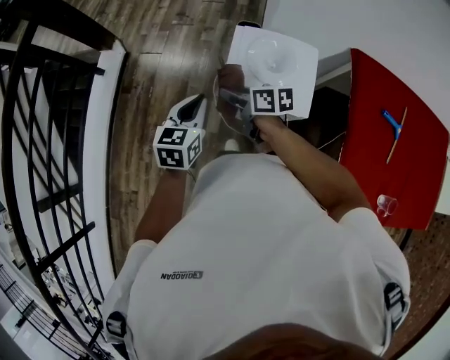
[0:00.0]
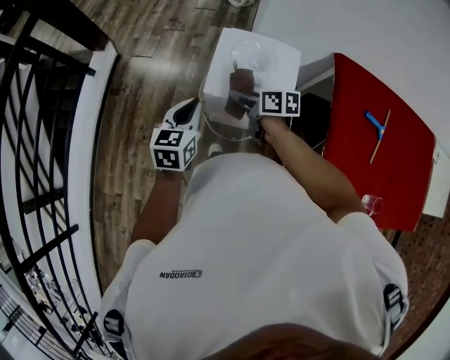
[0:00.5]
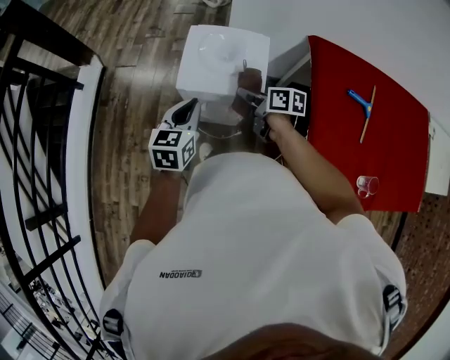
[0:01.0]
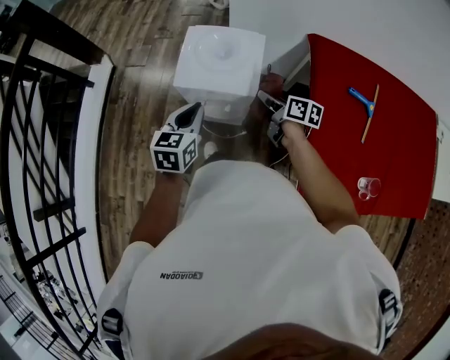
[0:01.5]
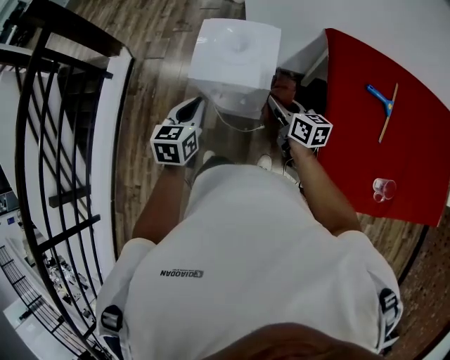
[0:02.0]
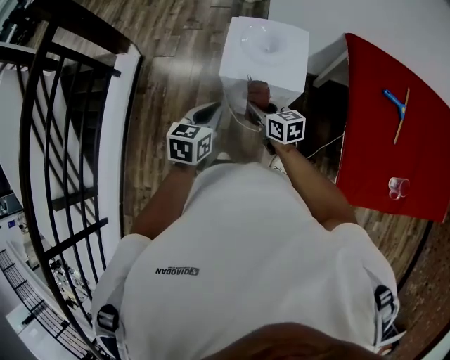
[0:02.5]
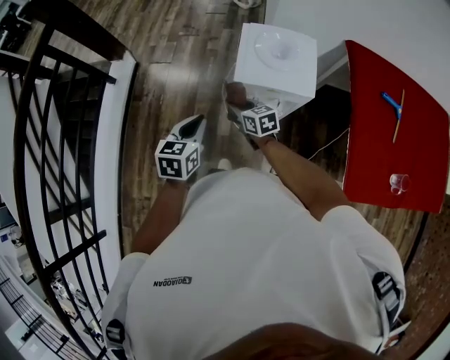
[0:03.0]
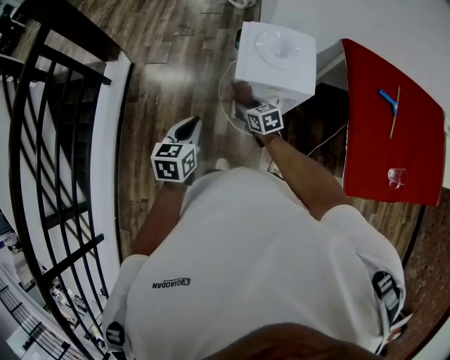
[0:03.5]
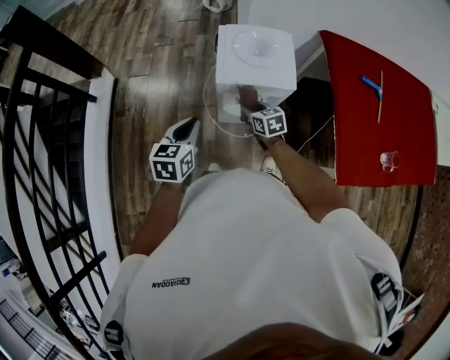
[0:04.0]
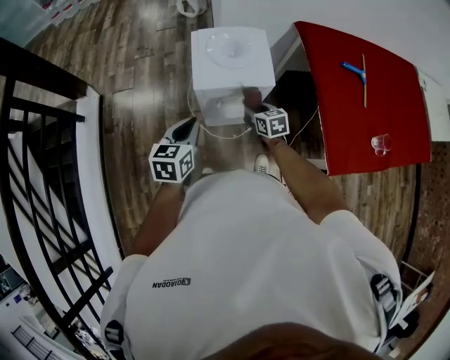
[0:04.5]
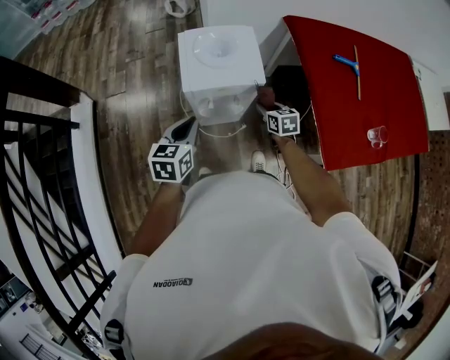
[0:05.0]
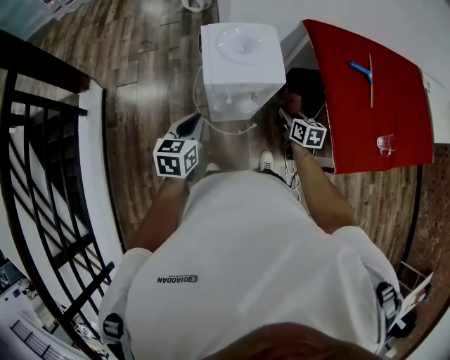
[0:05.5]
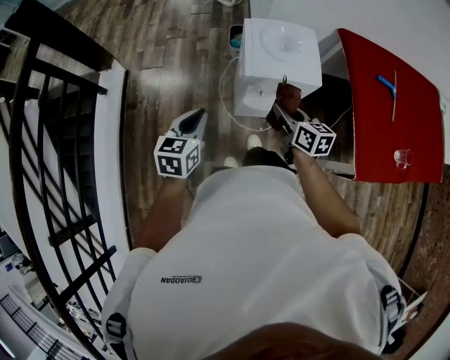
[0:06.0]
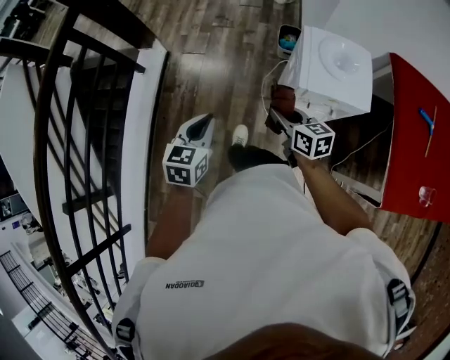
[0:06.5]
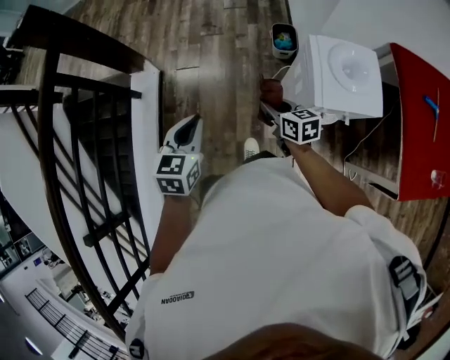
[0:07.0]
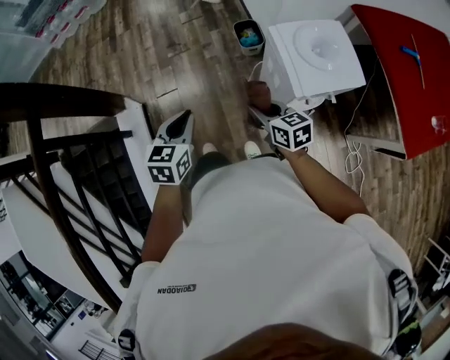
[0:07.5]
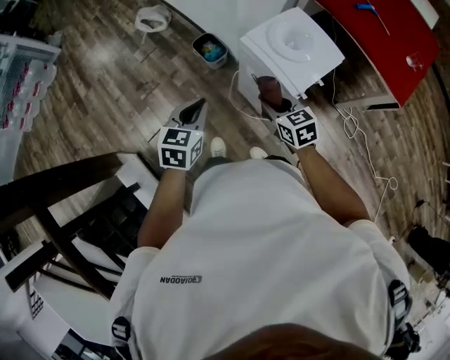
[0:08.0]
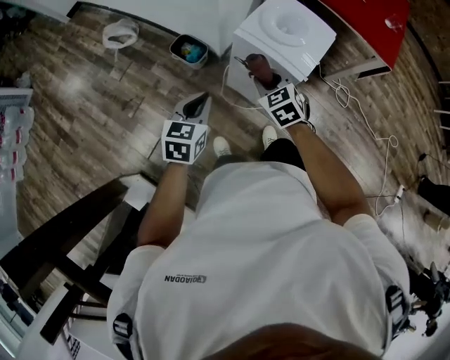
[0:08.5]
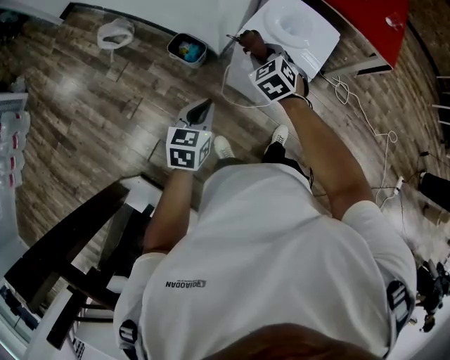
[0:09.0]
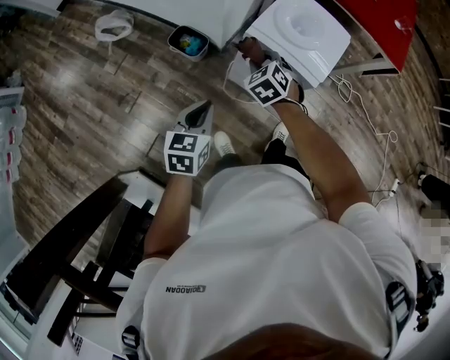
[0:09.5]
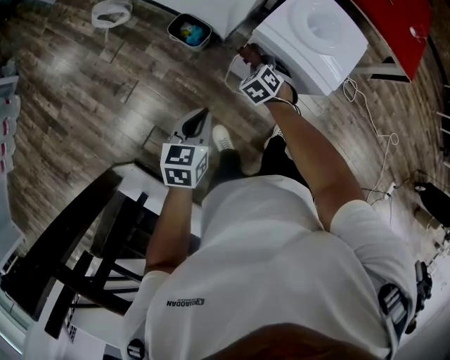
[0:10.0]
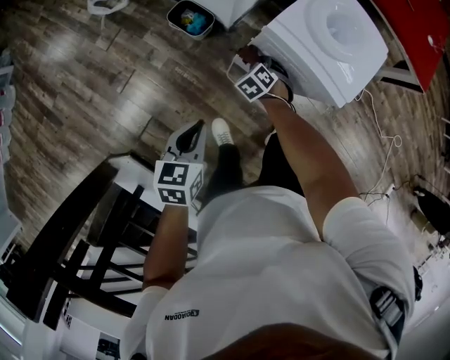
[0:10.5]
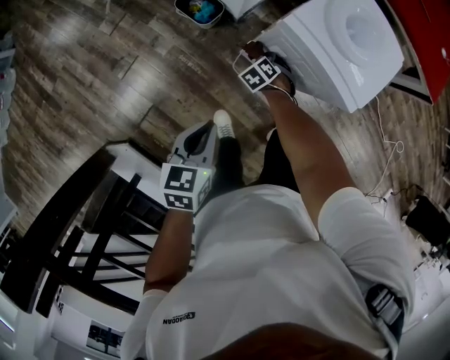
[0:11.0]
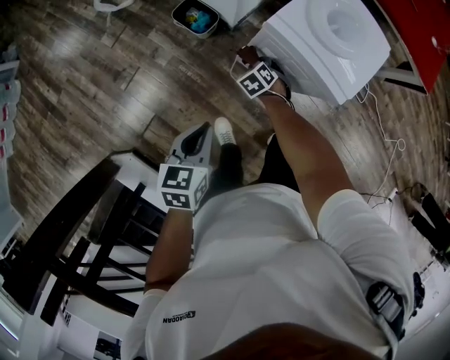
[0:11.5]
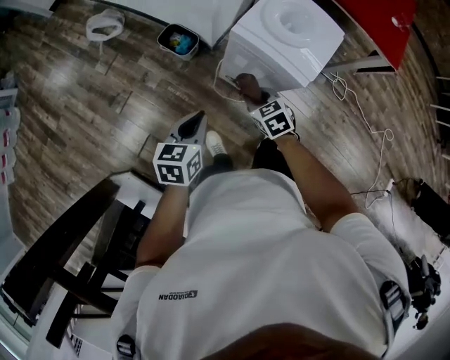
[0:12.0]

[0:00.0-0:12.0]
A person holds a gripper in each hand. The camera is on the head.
0:00.0 to 0:02.0: The right gripper heads to the right and backward, covering about 30 cm, and changes its angle by approximately 30 degrees, while the left gripper goes about 15 cm backward and to the right.
0:02.0 to 0:04.0: The right gripper travels to the left and downward by some 20 cm, and rotates approximately 30 degrees, while the left gripper moves to the left, roughly 15 cm.
0:04.0 to 0:06.0: The left gripper shifts some 5 cm to the left. The right gripper travels upward by roughly 10 cm, travels to the right and back again, about 20 cm each way, and swivels some 20 degrees.
0:06.0 to 0:08.0: The right gripper shifts by some 25 cm, and swivels roughly 30 degrees; the left gripper moves roughly 30 cm, and changes its angle by approximately 40 degrees.
0:08.0 to 0:10.0: The left gripper moves downward, about 10 cm. The right gripper heads downward, covering approximately 15 cm, and rotates roughly 40 degrees.
0:10.0 to 0:12.0: The right gripper moves backward, some 10 cm, goes downward and returns, roughly 15 cm each way, and turns by some 30 degrees.

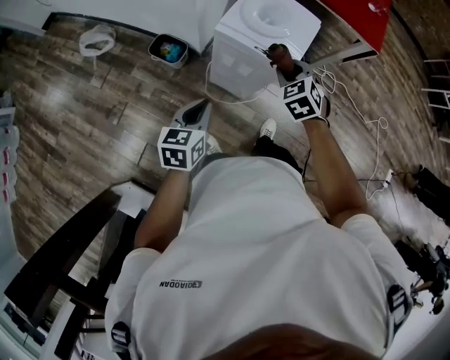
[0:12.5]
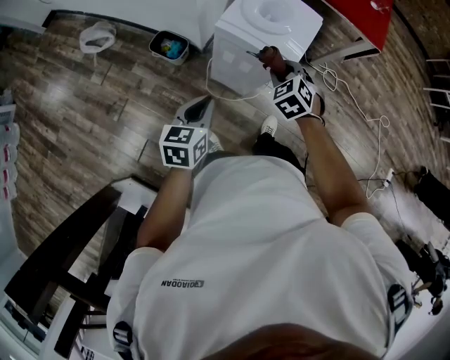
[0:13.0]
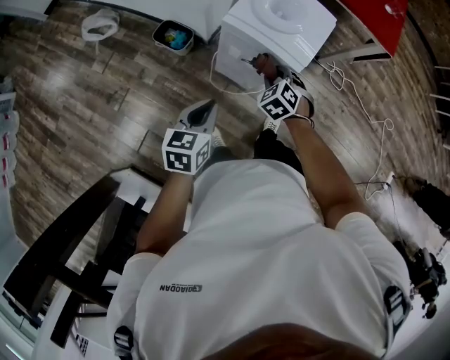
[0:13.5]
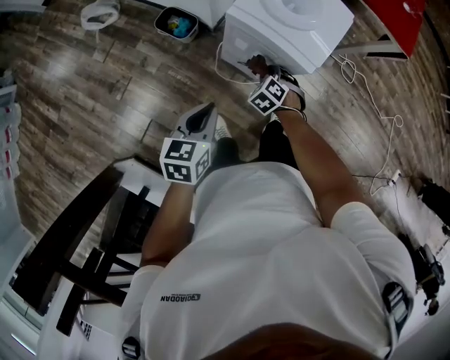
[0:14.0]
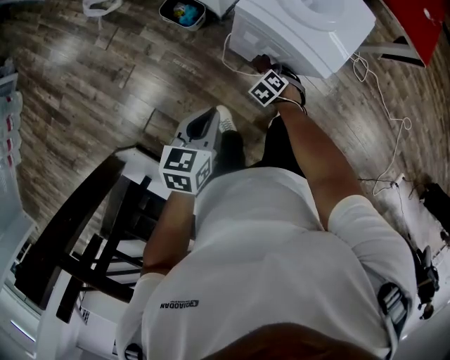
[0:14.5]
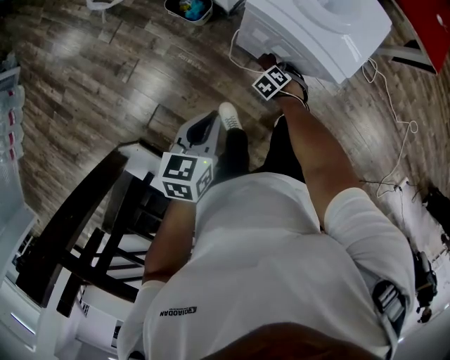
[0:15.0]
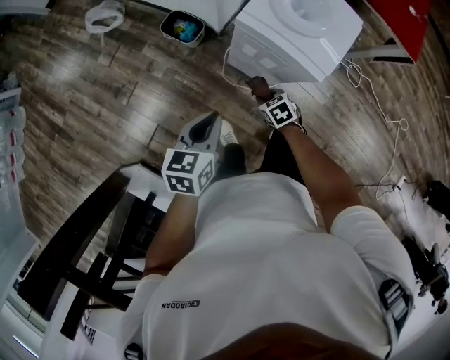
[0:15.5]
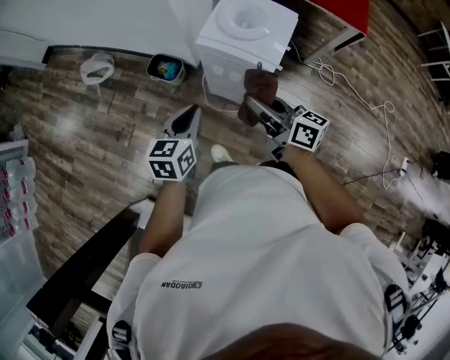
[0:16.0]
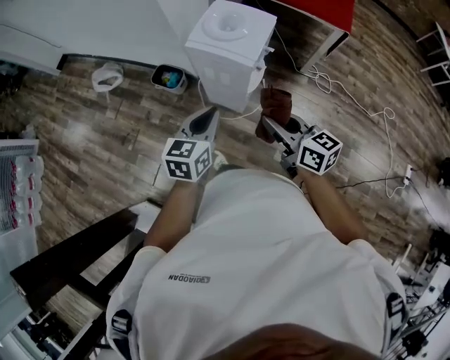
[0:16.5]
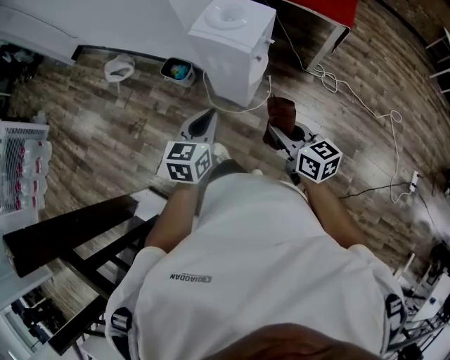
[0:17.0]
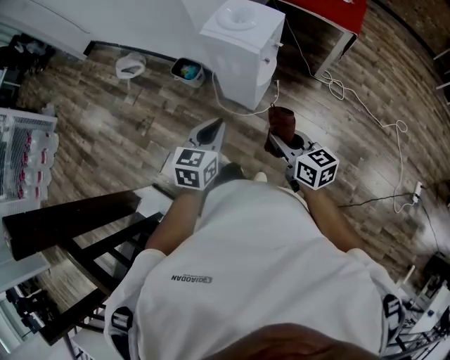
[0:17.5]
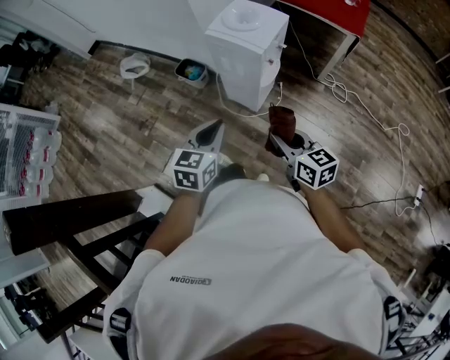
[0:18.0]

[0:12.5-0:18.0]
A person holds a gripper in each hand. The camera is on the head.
0:12.5 to 0:14.5: The right gripper goes some 30 cm downward, and swivels roughly 30 degrees. The left gripper travels downward by some 5 cm.
0:14.5 to 0:16.0: The right gripper is displaced upward by some 40 cm, and angles its fingers upward, by roughly 70 degrees. The left gripper travels upward by roughly 10 cm.
0:16.0 to 0:18.0: The left gripper heads backward and to the right, covering roughly 25 cm. The right gripper is displaced backward by roughly 25 cm, and swivels approximately 30 degrees.

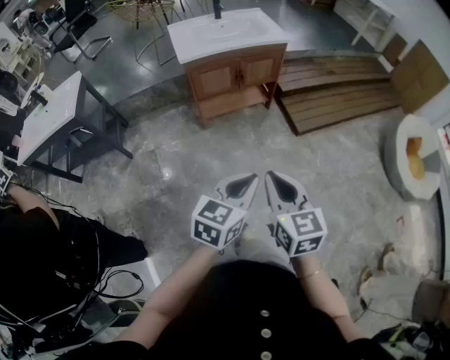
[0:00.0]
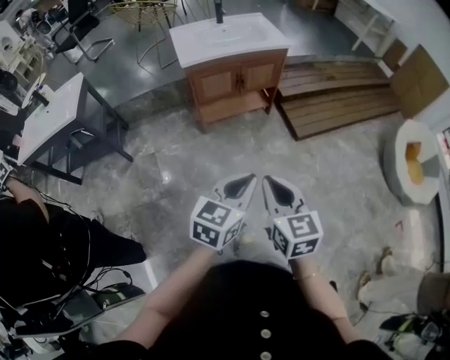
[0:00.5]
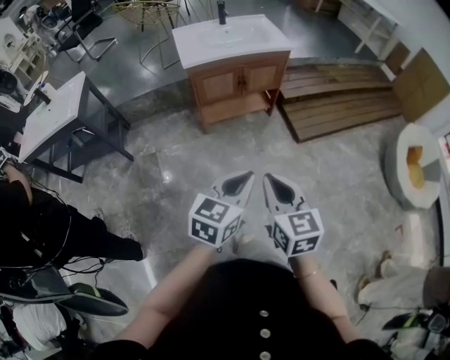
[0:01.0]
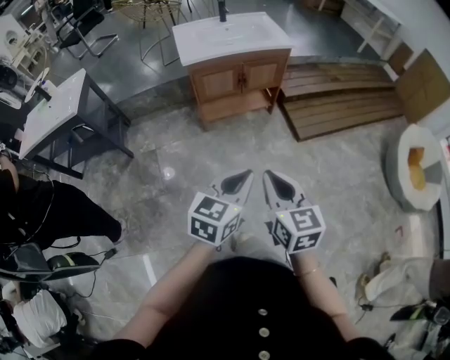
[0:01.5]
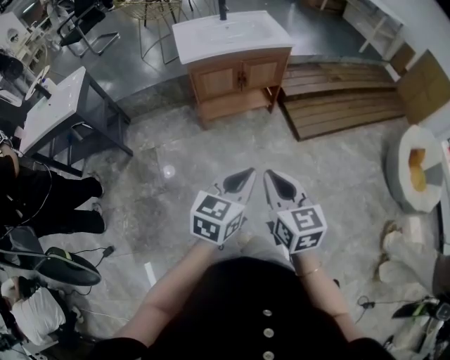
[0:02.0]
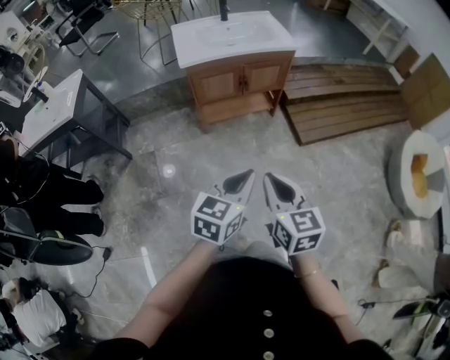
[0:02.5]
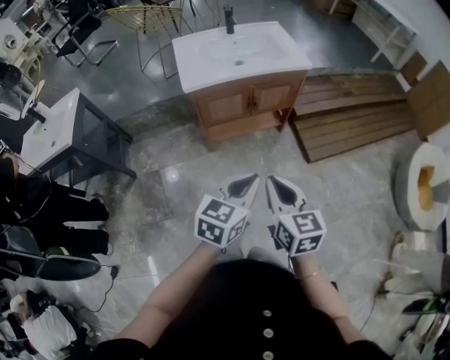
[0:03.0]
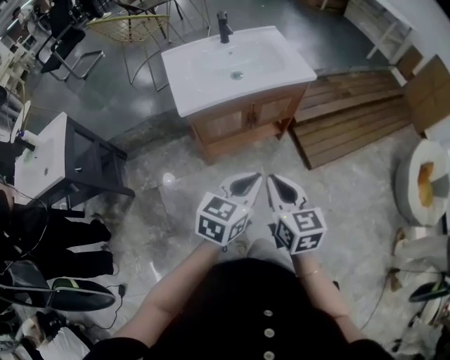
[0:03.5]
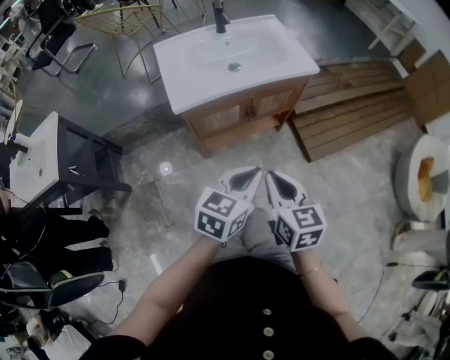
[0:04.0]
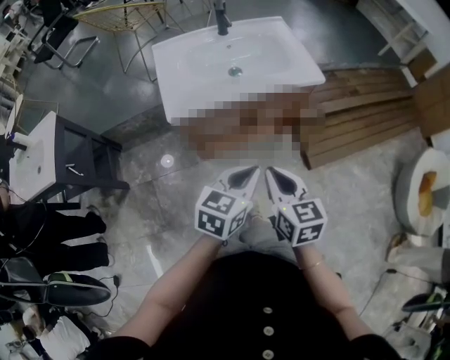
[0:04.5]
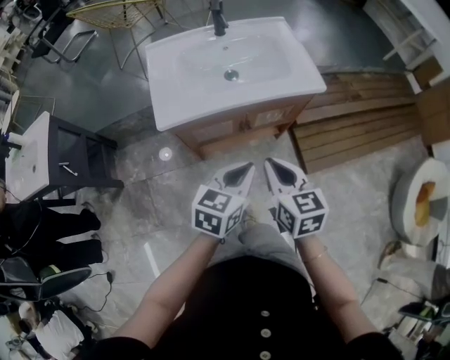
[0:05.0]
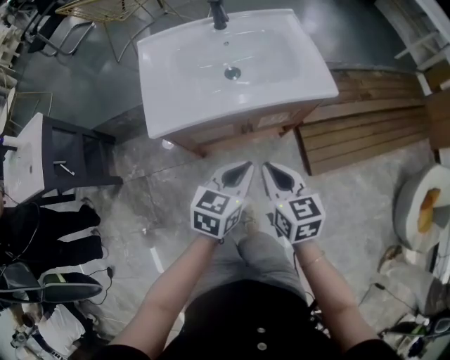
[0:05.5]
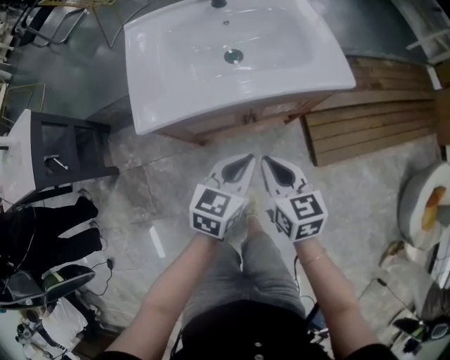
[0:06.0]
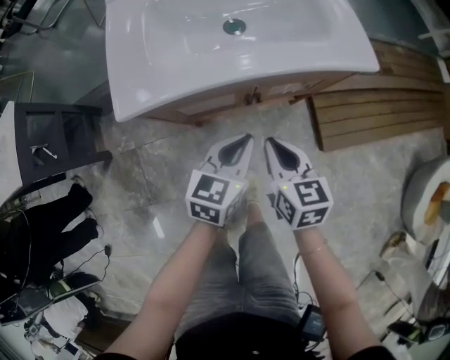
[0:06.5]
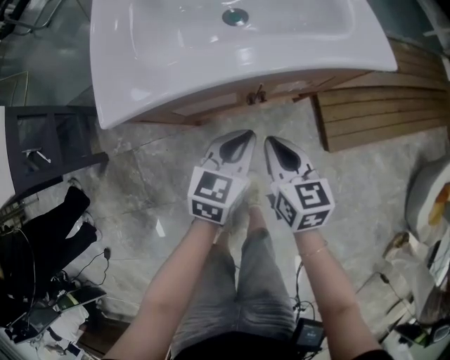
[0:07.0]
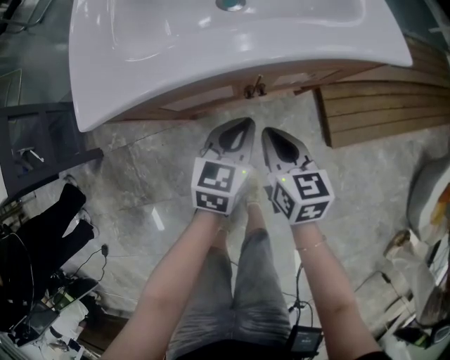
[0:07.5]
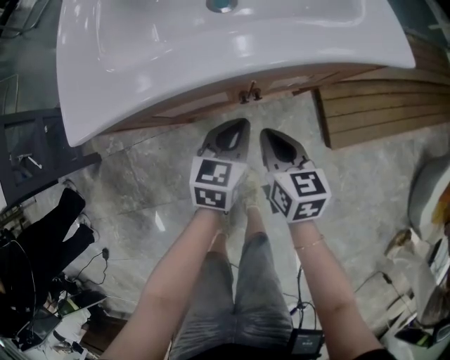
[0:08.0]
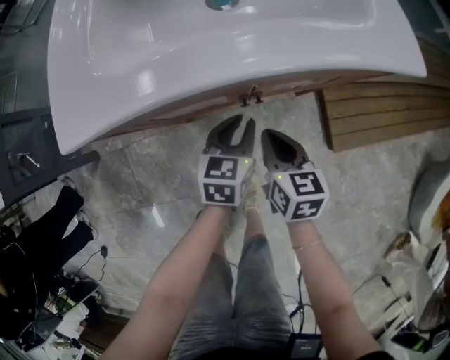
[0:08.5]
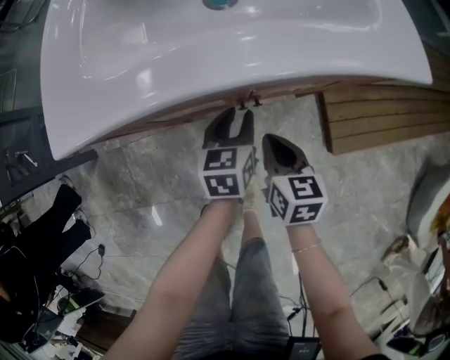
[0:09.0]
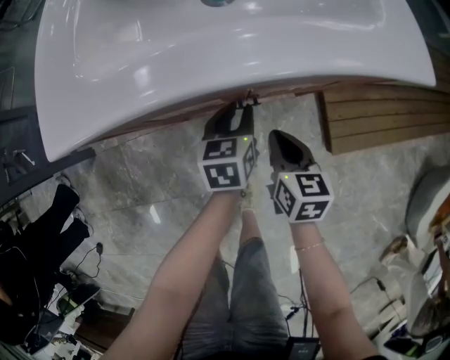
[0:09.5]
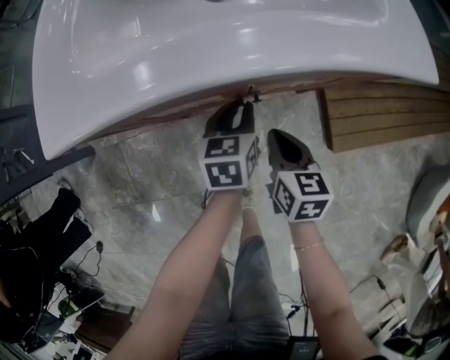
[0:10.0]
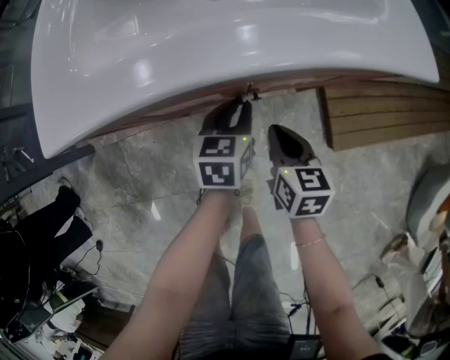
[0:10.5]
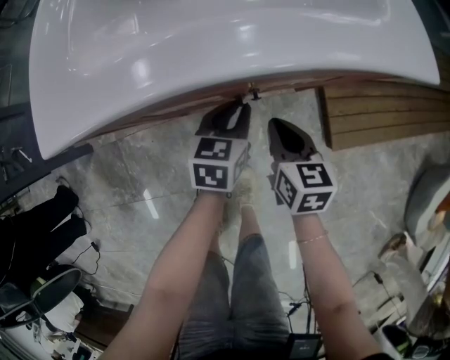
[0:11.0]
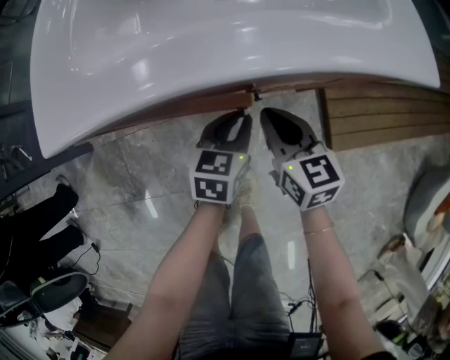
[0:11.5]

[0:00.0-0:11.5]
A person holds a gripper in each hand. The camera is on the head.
0:00.0 to 0:02.0: There are only small adjustments of the grippers.
0:02.0 to 0:04.0: The grippers both shift forward by roughly 30 cm.
0:04.0 to 0:06.0: Both grippers move forward and downward, approximately 25 cm.
0:06.0 to 0:07.5: Both grippers travel together downward, approximately 15 cm.
0:07.5 to 0:09.5: The right gripper moves downward, some 10 cm; the left gripper goes approximately 15 cm downward and forward, rotates roughly 20 degrees, and opens.
0:09.5 to 0:11.5: The right gripper changes place by roughly 5 cm.
